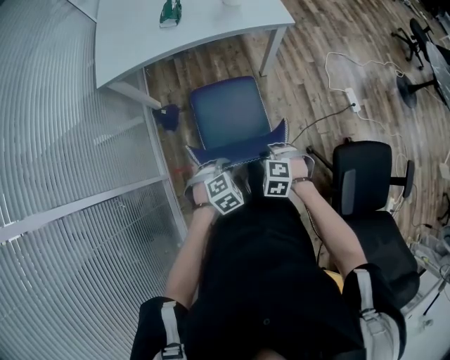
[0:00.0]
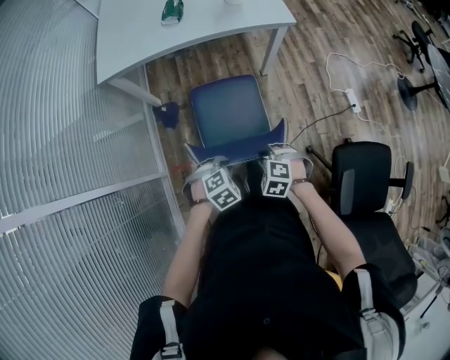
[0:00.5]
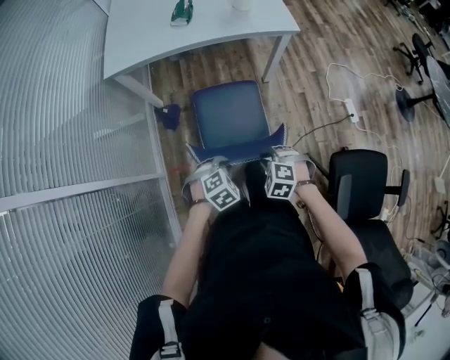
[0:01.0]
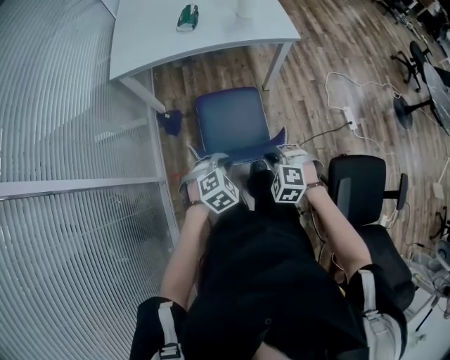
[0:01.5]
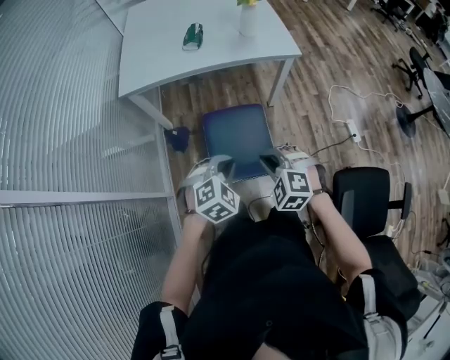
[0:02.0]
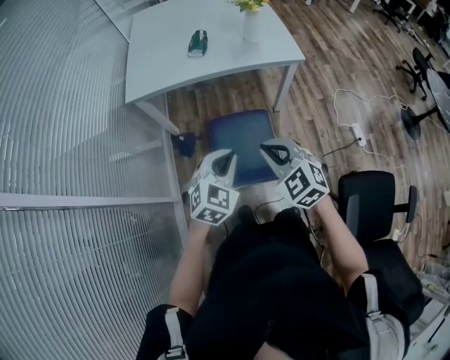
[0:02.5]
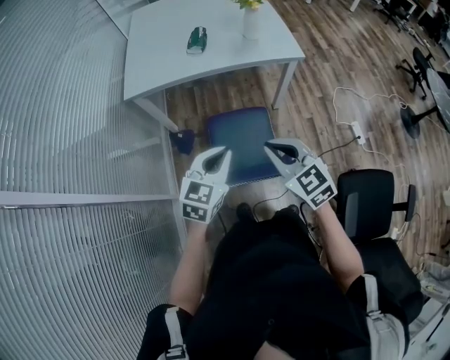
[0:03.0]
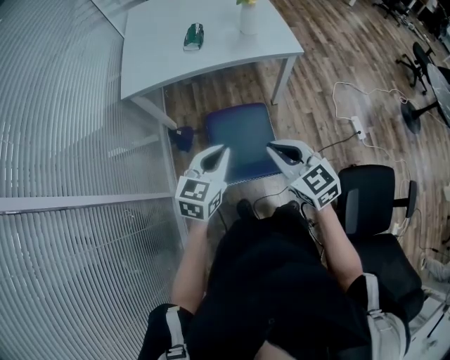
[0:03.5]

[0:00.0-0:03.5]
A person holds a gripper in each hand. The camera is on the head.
0:00.0 to 0:02.0: Both grippers move upward, approximately 15 cm. The left gripper turns by some 20 degrees, while the right gripper changes its angle by some 20 degrees.
0:02.0 to 0:03.5: The two grippers go some 10 cm upward. The left gripper rolls counterclockwise, seen from behind, by roughly 40 degrees. Meanwhile the right gripper rotates around the line of its fingers by roughly 40 degrees, clockwise from behind.

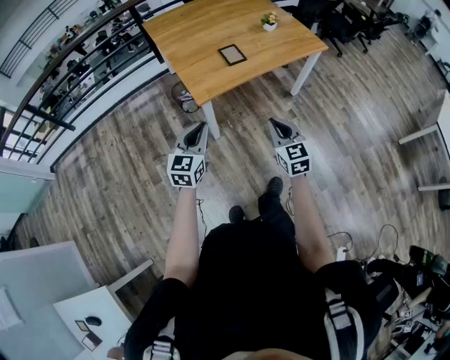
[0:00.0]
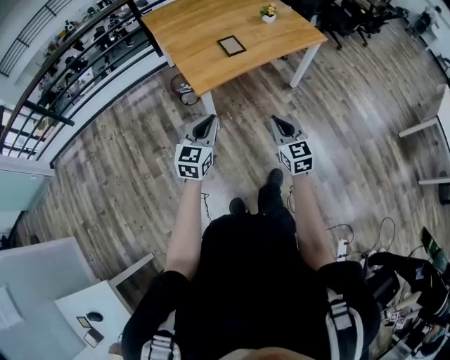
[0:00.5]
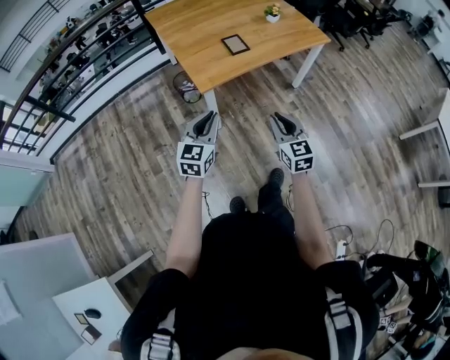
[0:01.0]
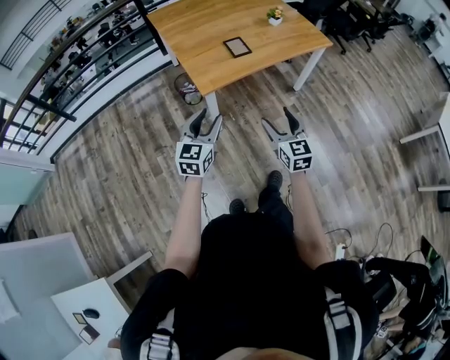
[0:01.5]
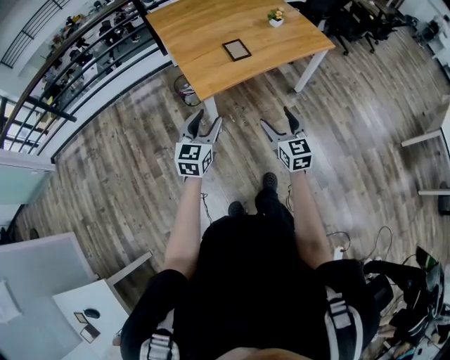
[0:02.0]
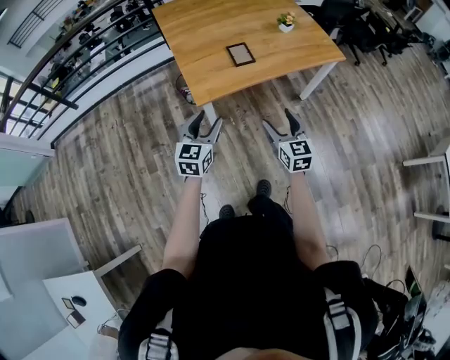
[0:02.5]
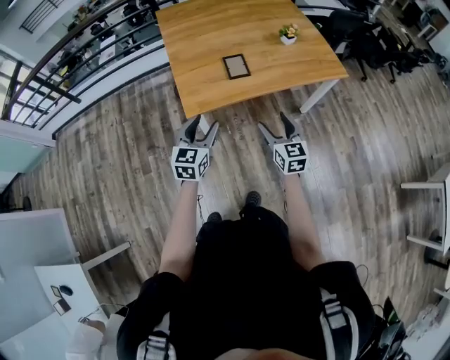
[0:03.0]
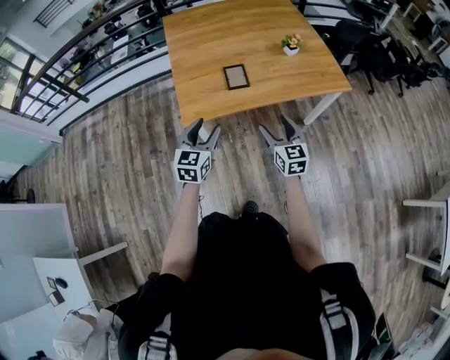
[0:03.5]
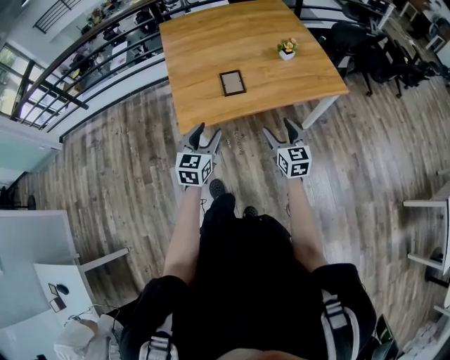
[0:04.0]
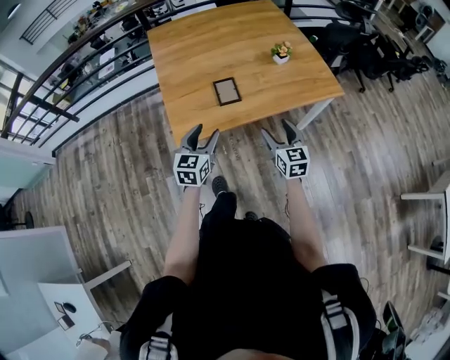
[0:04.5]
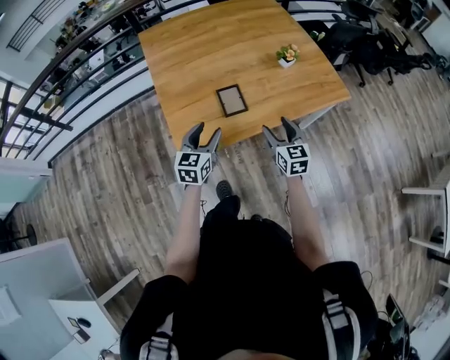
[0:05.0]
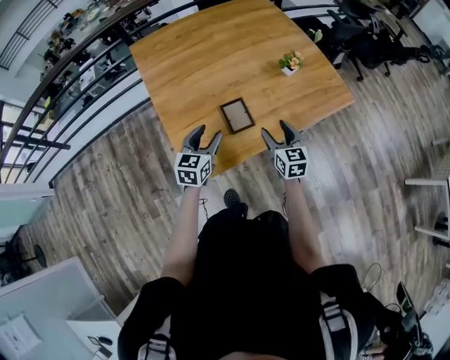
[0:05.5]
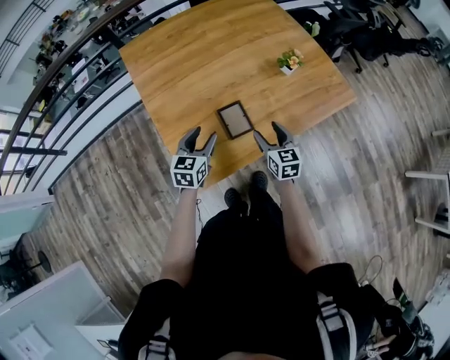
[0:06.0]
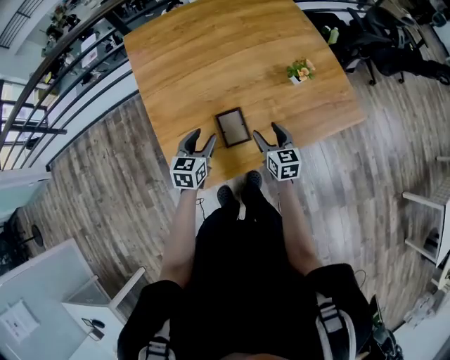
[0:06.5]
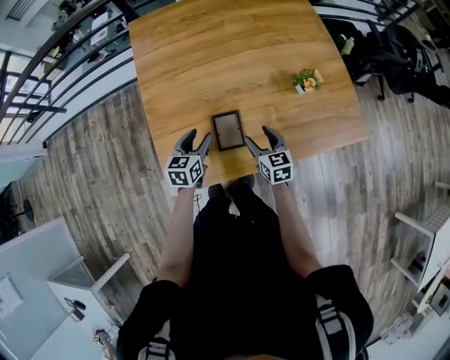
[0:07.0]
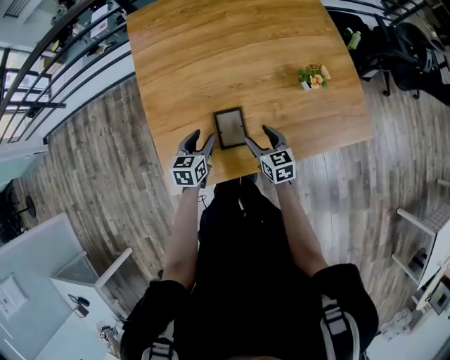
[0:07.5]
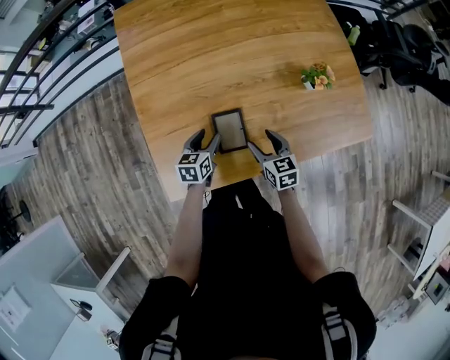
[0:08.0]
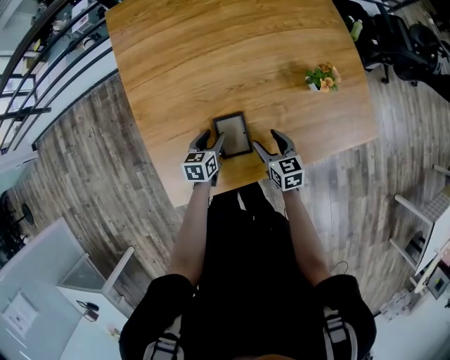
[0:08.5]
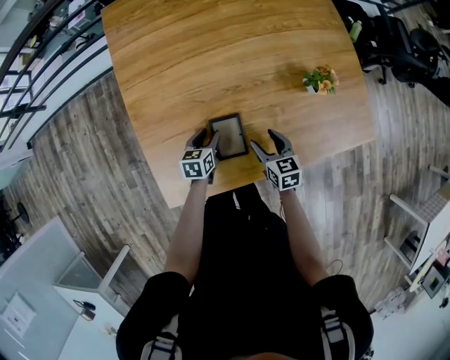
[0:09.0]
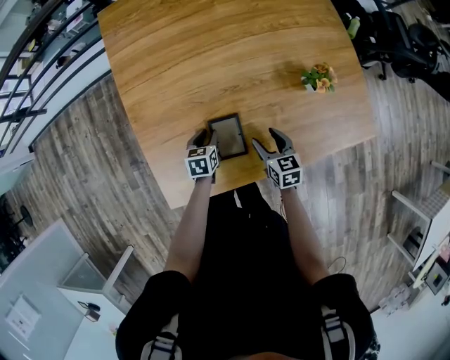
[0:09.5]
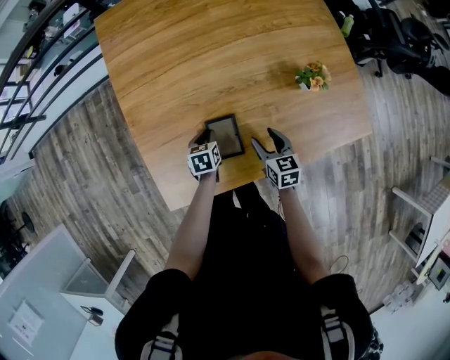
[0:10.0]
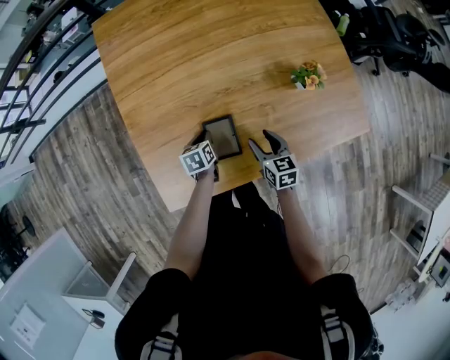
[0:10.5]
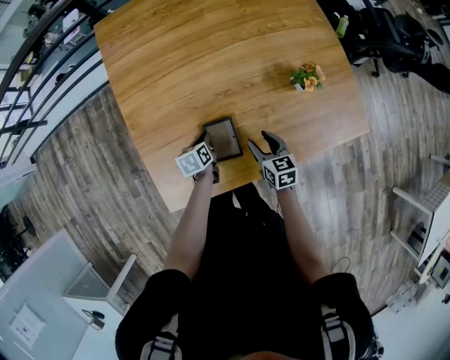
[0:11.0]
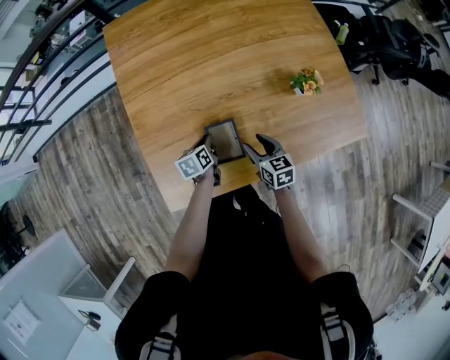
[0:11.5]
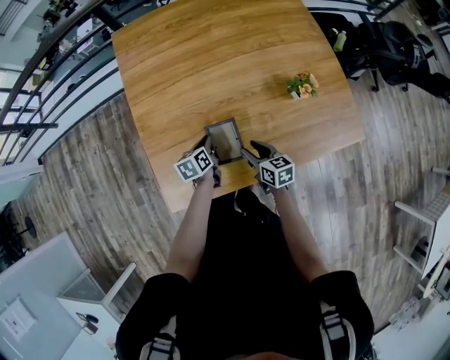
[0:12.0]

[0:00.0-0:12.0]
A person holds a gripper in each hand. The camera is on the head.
0:00.0 to 0:02.0: The right gripper opens its fingers. Meanwhile the left gripper opens up.
0:02.0 to 0:04.0: Both grippers move forward and to the right, about 25 cm.
0:04.0 to 0:06.0: The right gripper moves forward and to the left, some 25 cm. The left gripper goes some 30 cm forward.
0:06.0 to 0:08.0: The grippers both shift downward and forward by about 15 cm. The right gripper turns by some 20 degrees. Meanwhile the left gripper changes its angle by approximately 30 degrees.
0:08.0 to 0:10.0: The left gripper heads downward, covering approximately 5 cm, and closes up.
0:10.0 to 0:12.0: The left gripper is displaced upward by roughly 5 cm, and turns by some 20 degrees.

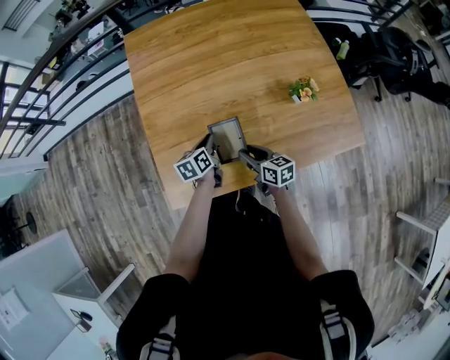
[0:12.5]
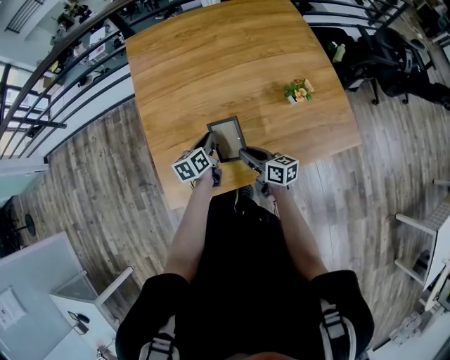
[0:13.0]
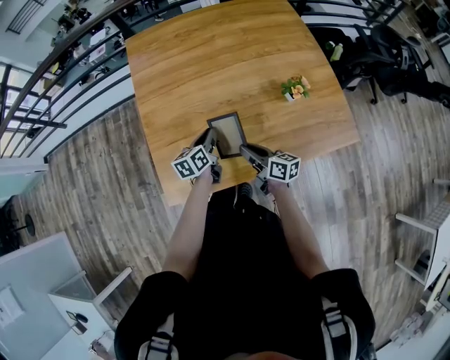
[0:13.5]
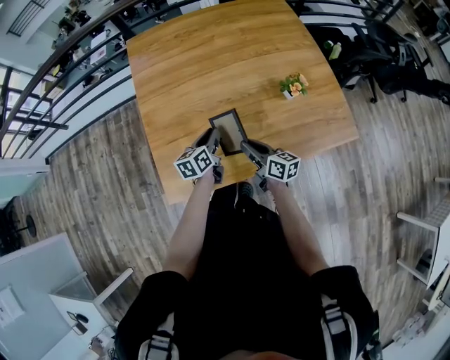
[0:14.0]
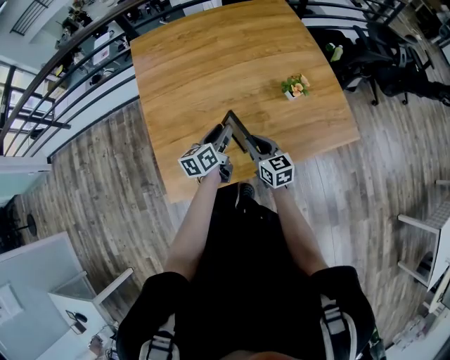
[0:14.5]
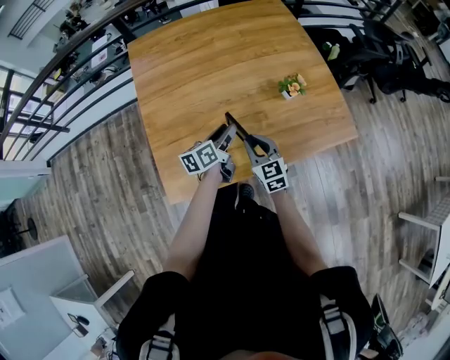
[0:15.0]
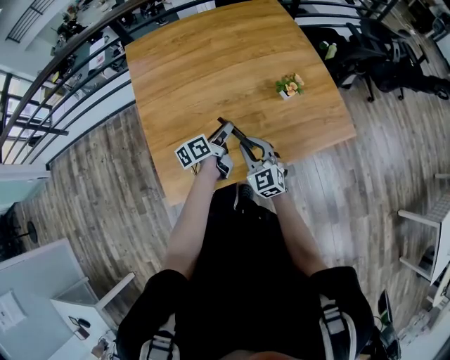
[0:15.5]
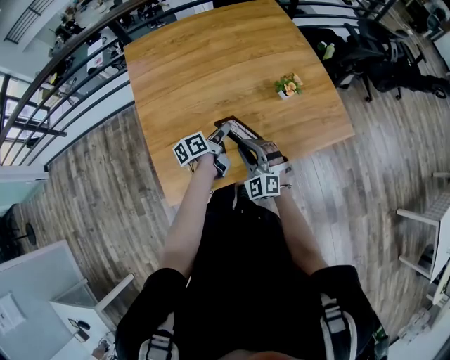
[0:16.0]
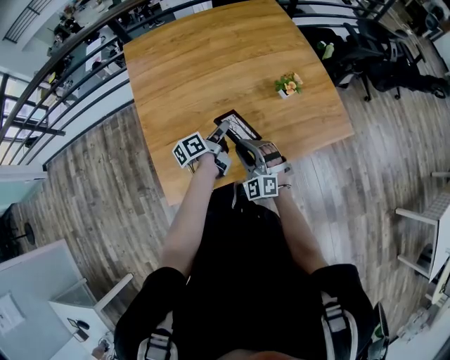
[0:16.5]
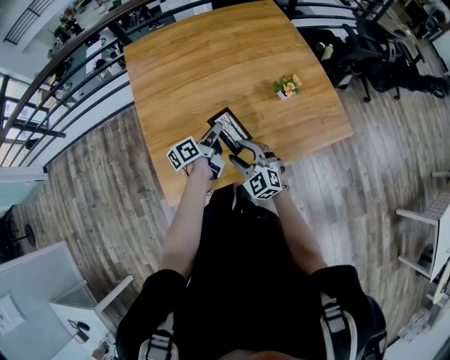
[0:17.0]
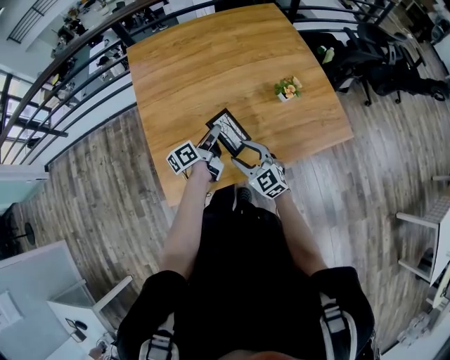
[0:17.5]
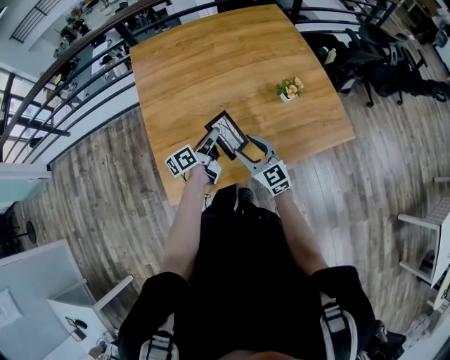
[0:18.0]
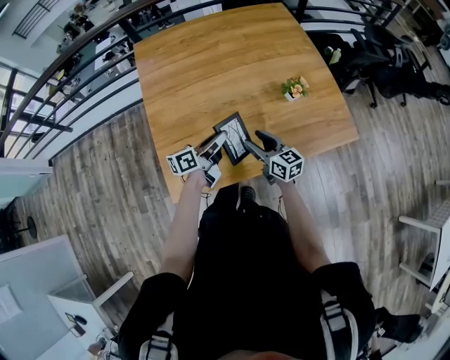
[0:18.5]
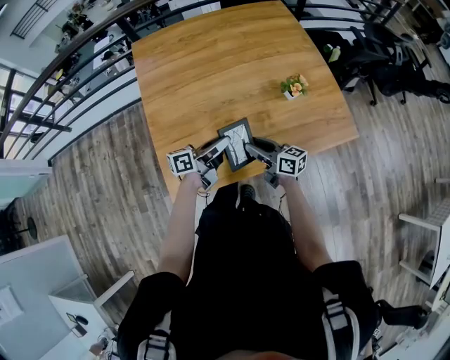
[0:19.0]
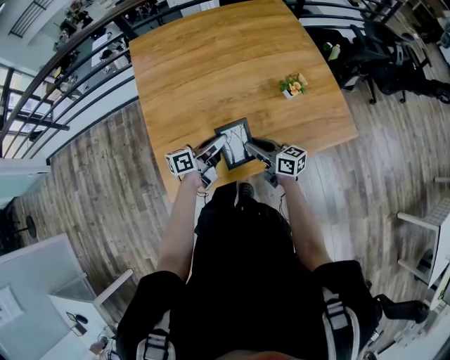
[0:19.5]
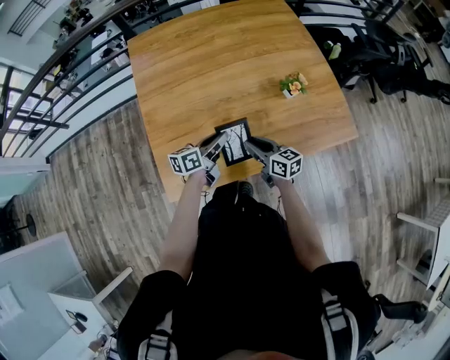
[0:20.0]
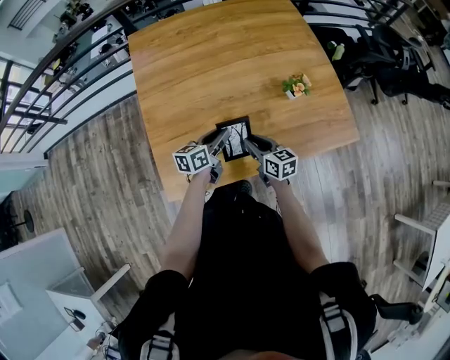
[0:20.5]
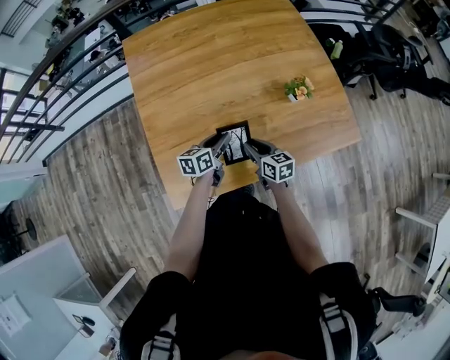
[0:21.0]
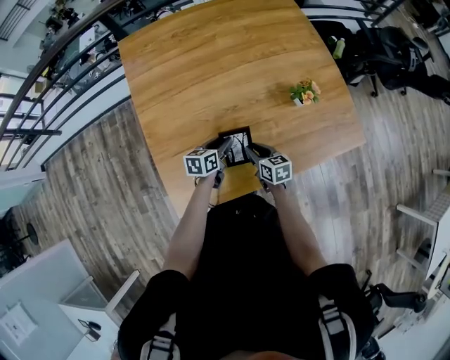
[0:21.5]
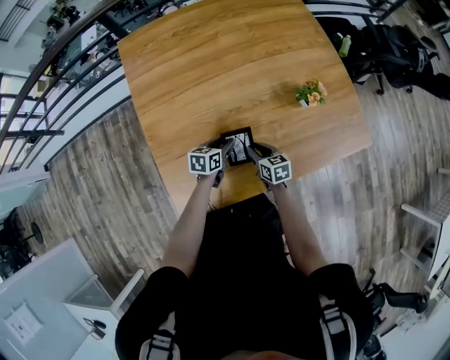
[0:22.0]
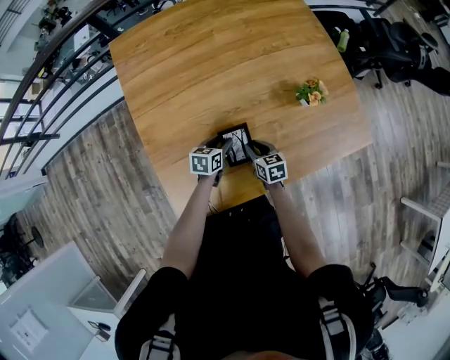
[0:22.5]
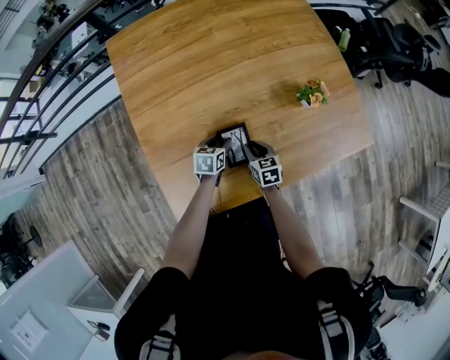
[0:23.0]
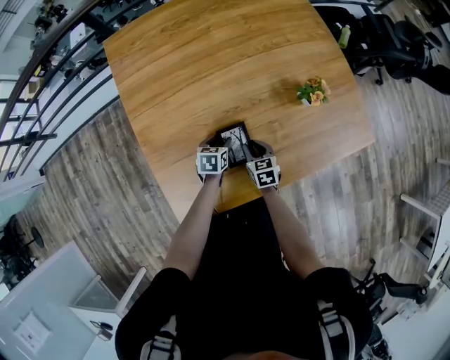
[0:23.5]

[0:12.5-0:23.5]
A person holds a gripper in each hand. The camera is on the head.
0:12.5 to 0:14.5: The right gripper heads upward, covering some 5 cm, and changes its angle by about 20 degrees, while the left gripper is displaced upward and to the right by approximately 10 cm, and opens.
0:14.5 to 0:16.0: The right gripper rotates around the line of its fingers by roughly 60 degrees, counterclockwise from behind. The left gripper changes its angle by about 30 degrees.
0:16.0 to 0:18.0: The right gripper changes its angle by approximately 40 degrees, and opens up. The left gripper shifts by roughly 5 cm.
0:18.0 to 0:20.0: The right gripper shifts some 10 cm downward, changes its angle by roughly 40 degrees, and closes up.
0:20.0 to 0:21.5: The left gripper goes about 10 cm downward and forward, and swivels some 20 degrees. The right gripper moves downward, some 10 cm, and swivels about 20 degrees.
0:21.5 to 0:23.5: The right gripper heads downward, covering some 5 cm. The left gripper goes some 10 cm downward, and swivels roughly 20 degrees.
